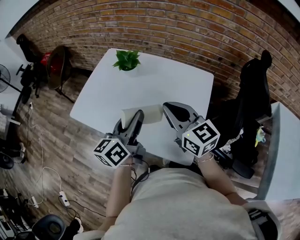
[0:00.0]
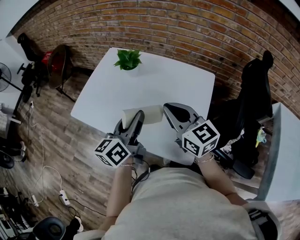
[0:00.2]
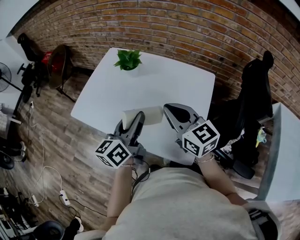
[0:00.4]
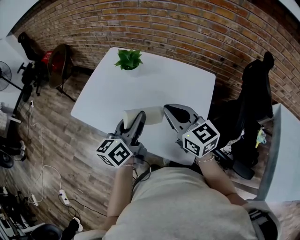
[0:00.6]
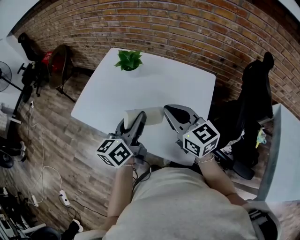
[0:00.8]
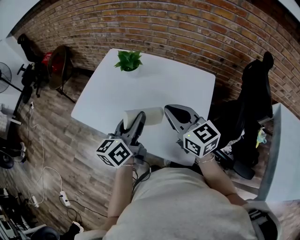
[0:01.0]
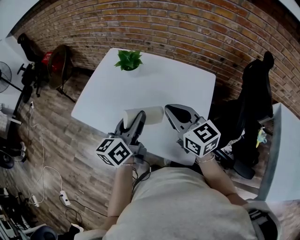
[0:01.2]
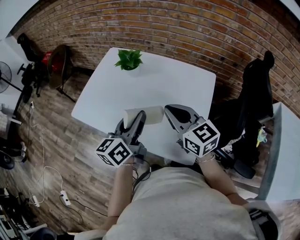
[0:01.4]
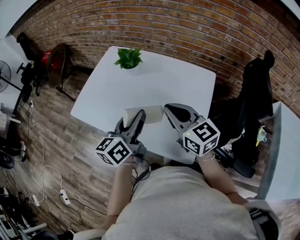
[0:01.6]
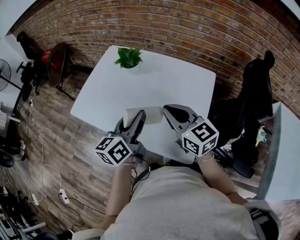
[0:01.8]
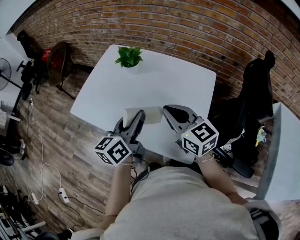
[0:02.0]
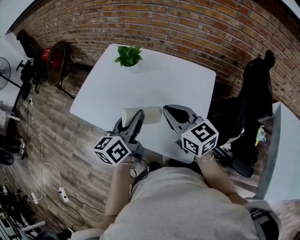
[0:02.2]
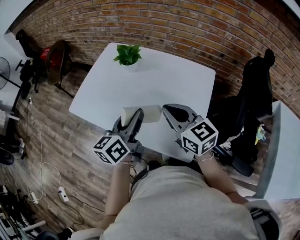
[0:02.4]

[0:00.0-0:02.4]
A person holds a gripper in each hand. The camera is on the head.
0:00.0 to 0:02.4: There are only small adjustments of the grippers.

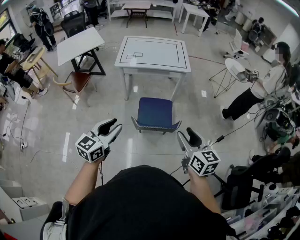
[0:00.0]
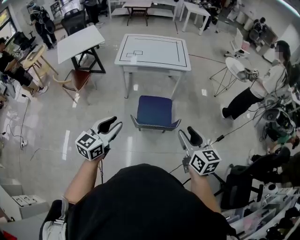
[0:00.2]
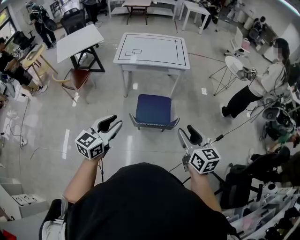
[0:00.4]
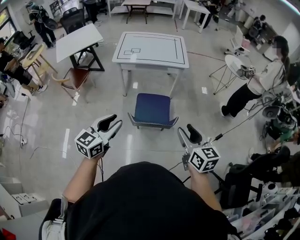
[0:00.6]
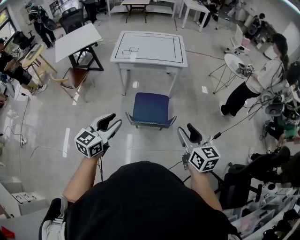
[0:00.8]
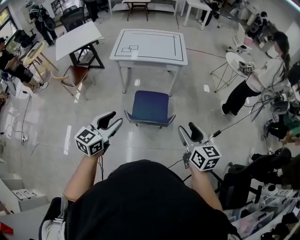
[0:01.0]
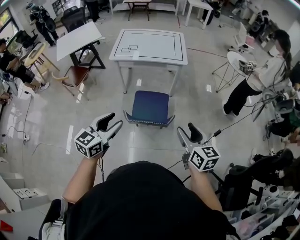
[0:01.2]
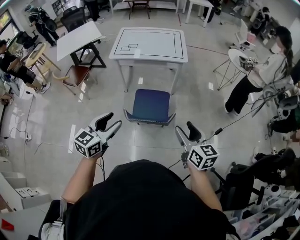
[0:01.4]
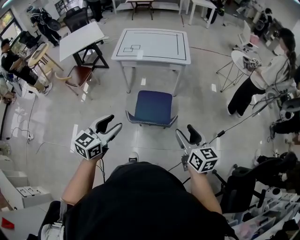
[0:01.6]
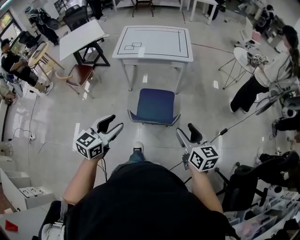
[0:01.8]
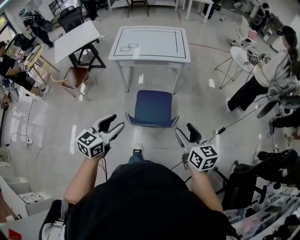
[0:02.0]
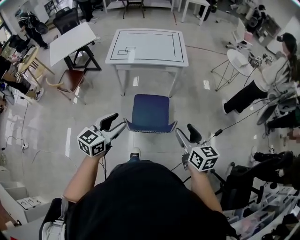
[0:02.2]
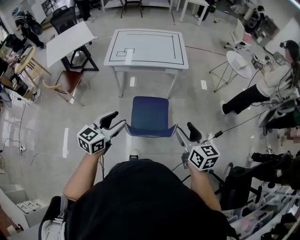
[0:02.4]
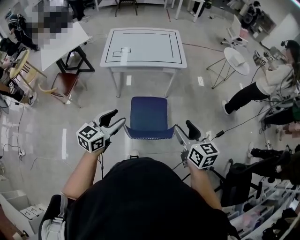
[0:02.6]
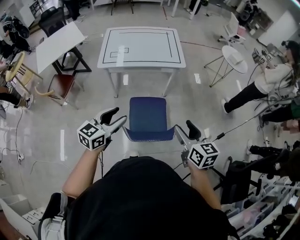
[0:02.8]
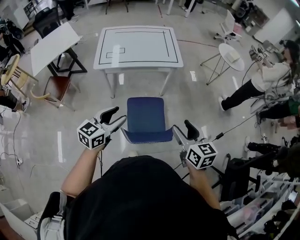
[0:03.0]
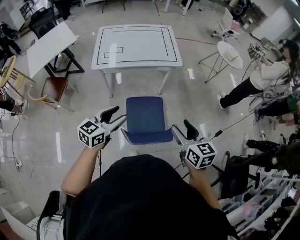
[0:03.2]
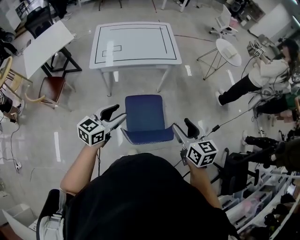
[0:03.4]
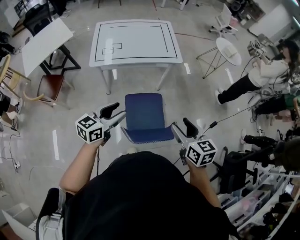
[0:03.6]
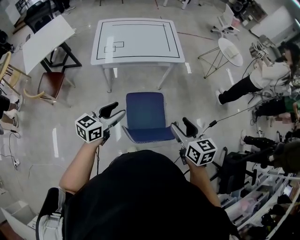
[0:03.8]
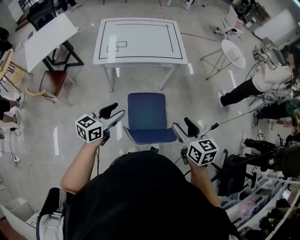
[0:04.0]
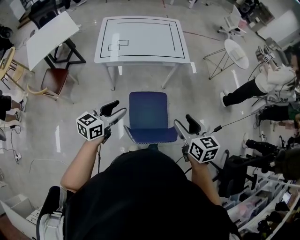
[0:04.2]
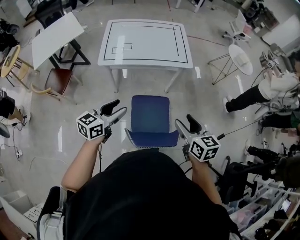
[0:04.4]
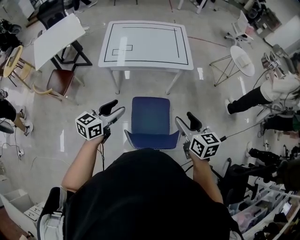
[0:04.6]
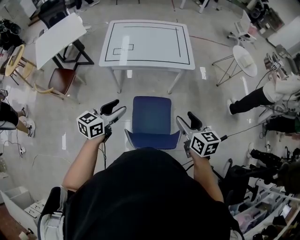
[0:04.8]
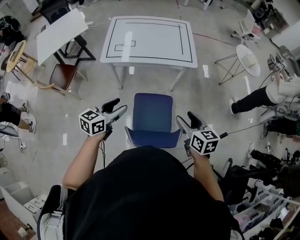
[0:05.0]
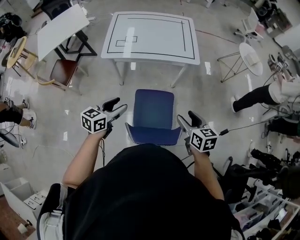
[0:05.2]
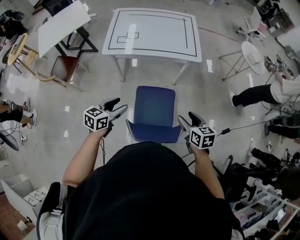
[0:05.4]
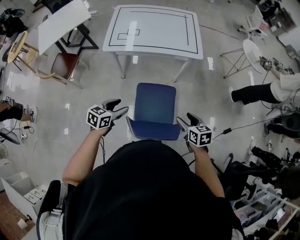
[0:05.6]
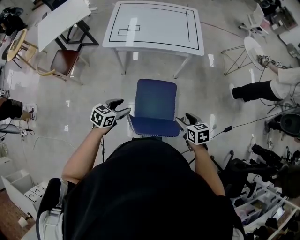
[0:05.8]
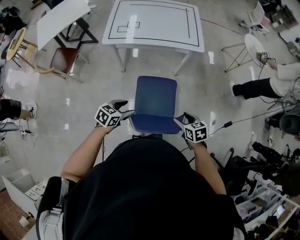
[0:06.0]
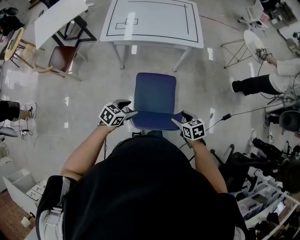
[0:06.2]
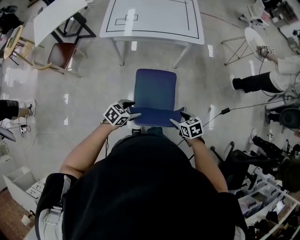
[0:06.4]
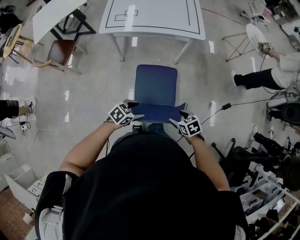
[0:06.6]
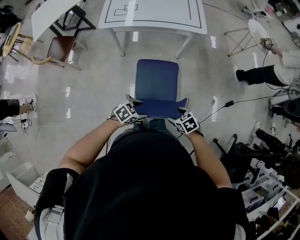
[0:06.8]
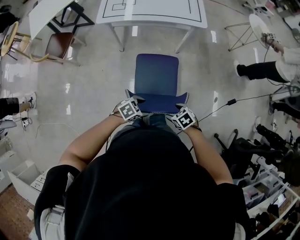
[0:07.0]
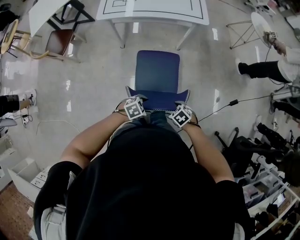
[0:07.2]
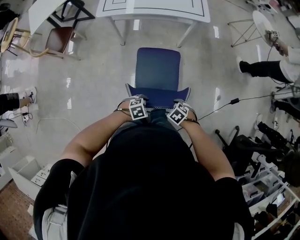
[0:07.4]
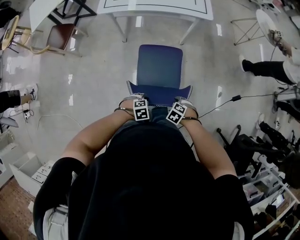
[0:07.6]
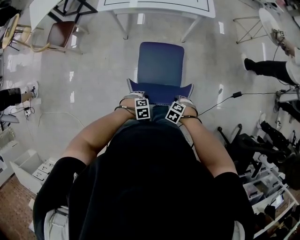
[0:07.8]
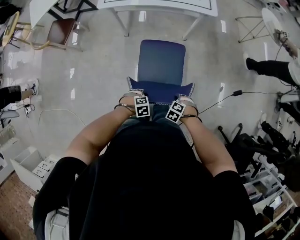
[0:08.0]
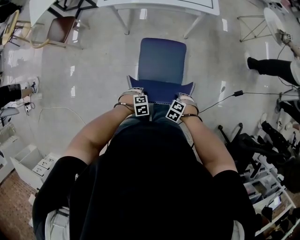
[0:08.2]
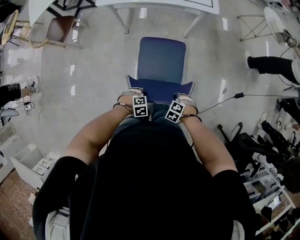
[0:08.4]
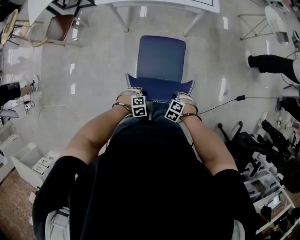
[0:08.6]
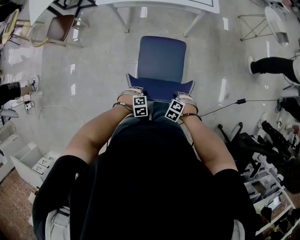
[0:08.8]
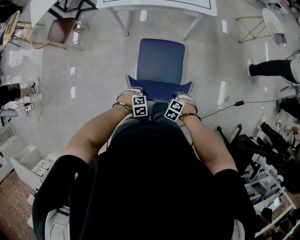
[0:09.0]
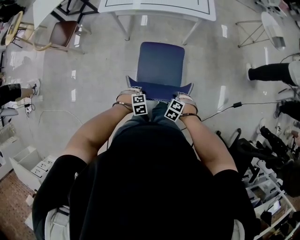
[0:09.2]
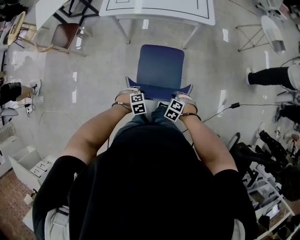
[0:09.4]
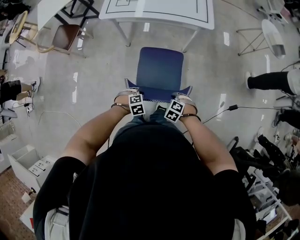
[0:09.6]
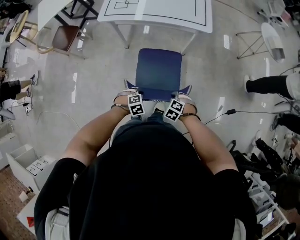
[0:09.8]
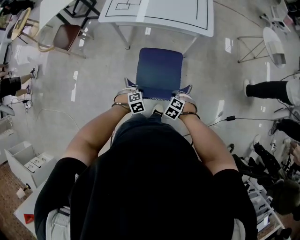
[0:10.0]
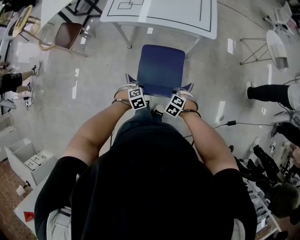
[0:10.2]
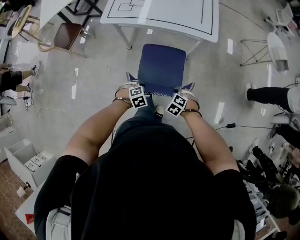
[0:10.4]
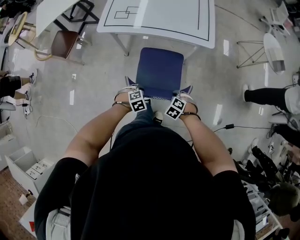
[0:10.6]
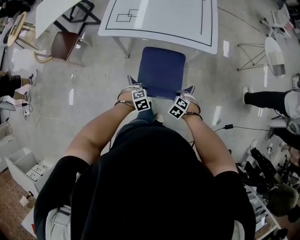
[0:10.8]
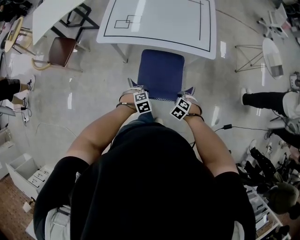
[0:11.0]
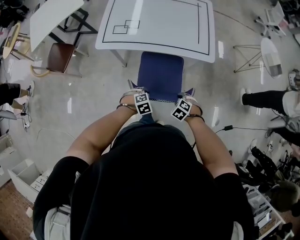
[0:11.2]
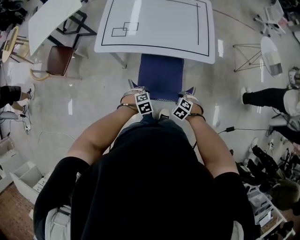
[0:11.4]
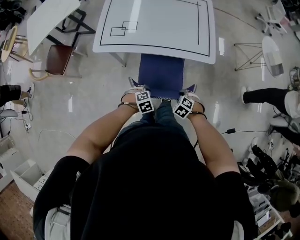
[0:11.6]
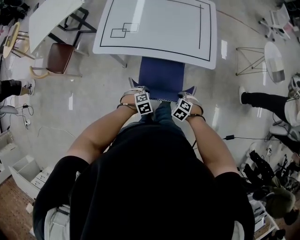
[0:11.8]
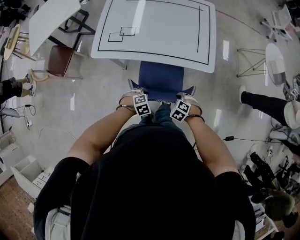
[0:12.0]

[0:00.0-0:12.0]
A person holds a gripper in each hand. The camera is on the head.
0:00.0 to 0:01.6: The grippers both shift to the right by some 10 cm.
0:01.6 to 0:03.0: The left gripper heads forward, covering approximately 20 cm. The right gripper shifts about 20 cm forward and to the left.
0:03.0 to 0:04.4: The right gripper moves forward, roughly 10 cm; the left gripper heads forward and to the left, covering some 10 cm.
0:04.4 to 0:06.0: The grippers both shift downward by approximately 20 cm. The left gripper rotates about 30 degrees. The right gripper turns by roughly 30 degrees.
0:06.0 to 0:07.6: The left gripper ends up about 25 cm from where it was, and turns by approximately 50 degrees, while the right gripper goes approximately 20 cm downward, and tips its fingers downward by some 30 degrees.
0:07.6 to 0:09.0: The right gripper closes, while the left gripper closes its fingers.
0:09.0 to 0:10.4: The left gripper shifts by about 20 cm; the right gripper ends up about 20 cm from where it was.
0:10.4 to 0:12.0: The right gripper ends up about 20 cm from where it was; the left gripper moves approximately 20 cm.

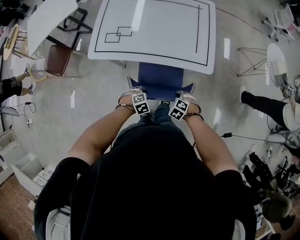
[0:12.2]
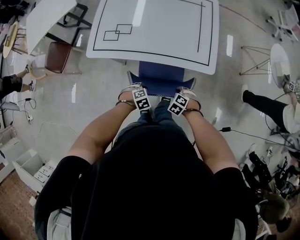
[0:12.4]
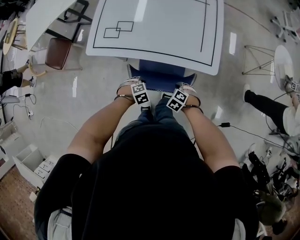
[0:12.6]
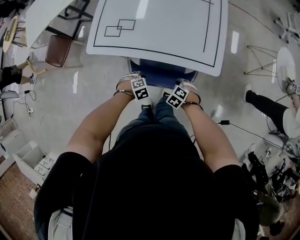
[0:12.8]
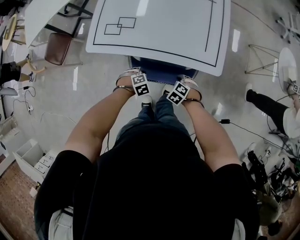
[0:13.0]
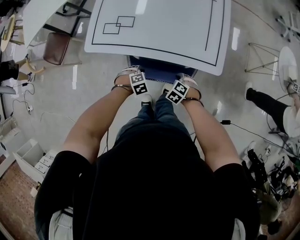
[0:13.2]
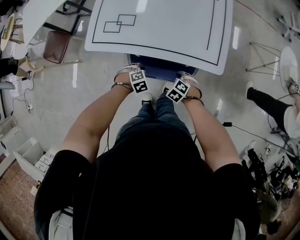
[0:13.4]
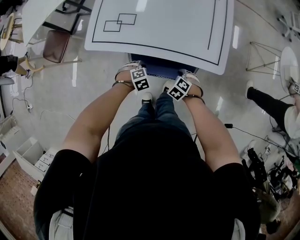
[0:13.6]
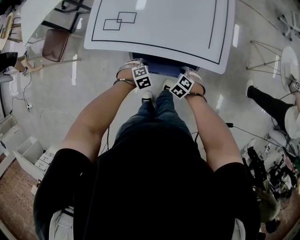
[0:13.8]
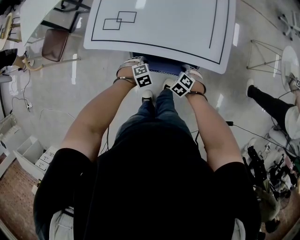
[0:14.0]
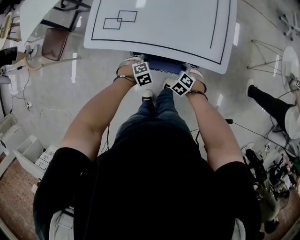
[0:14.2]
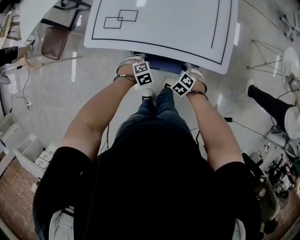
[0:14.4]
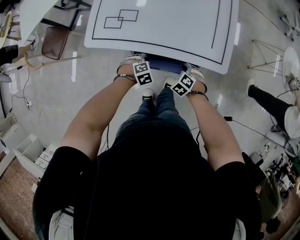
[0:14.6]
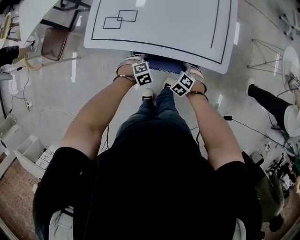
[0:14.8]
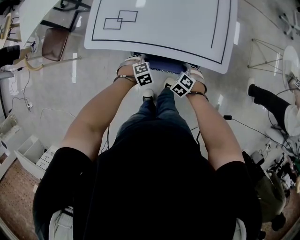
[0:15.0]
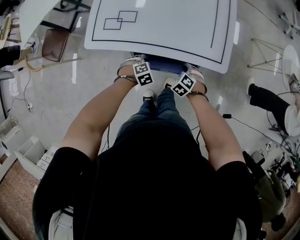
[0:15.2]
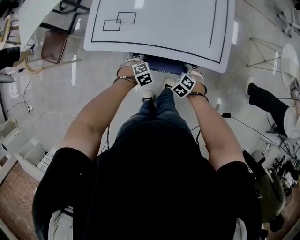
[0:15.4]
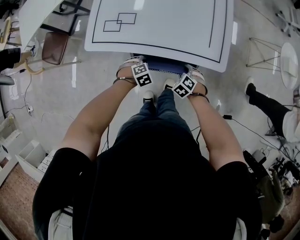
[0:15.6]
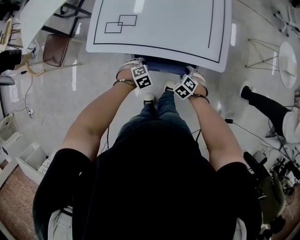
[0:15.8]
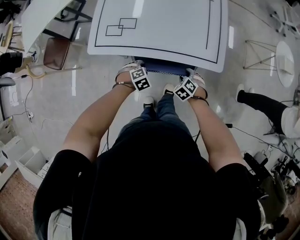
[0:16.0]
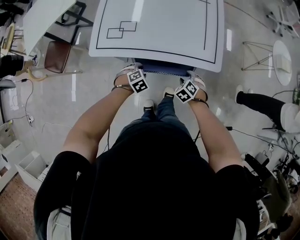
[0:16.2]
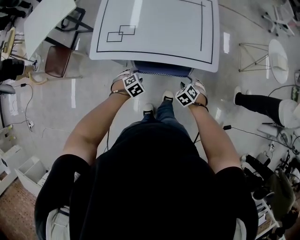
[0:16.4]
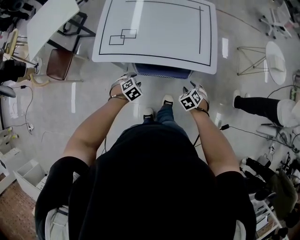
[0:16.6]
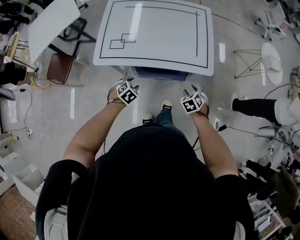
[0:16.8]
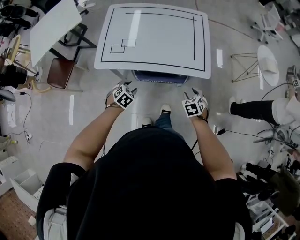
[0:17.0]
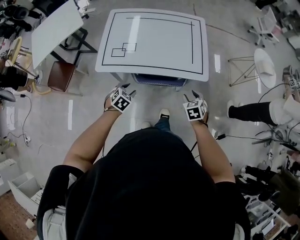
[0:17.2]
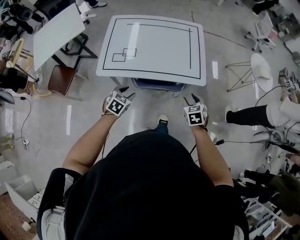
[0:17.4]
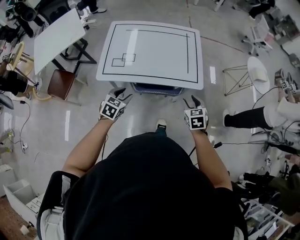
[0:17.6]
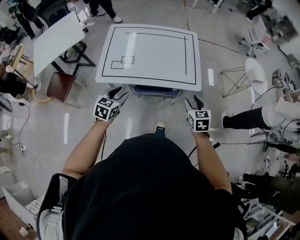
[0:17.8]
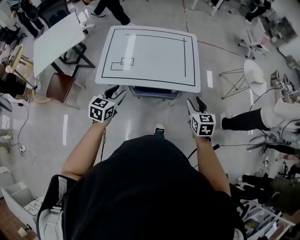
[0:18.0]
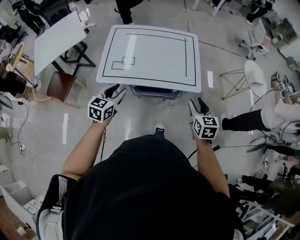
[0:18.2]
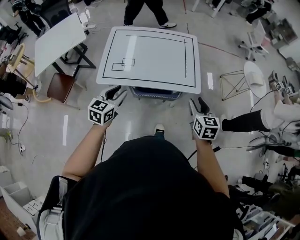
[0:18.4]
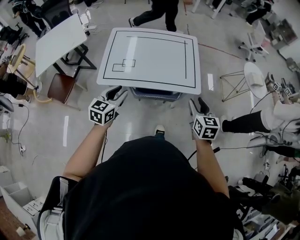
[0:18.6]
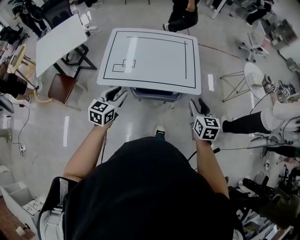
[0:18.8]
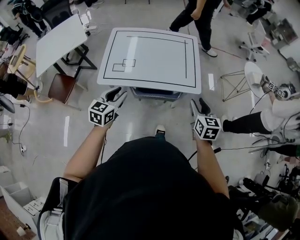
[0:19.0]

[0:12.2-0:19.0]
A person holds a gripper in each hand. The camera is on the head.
0:12.2 to 0:13.6: The right gripper shifts by about 10 cm; the left gripper moves about 15 cm.
0:13.6 to 0:15.0: The grippers stay close to where they were, moving slightly.
0:15.0 to 0:16.2: The left gripper changes place by about 5 cm, while the right gripper changes place by roughly 5 cm.
0:16.2 to 0:17.6: The two grippers go some 20 cm upward. The left gripper points its fingers some 30 degrees further upward. Meanwhile the right gripper turns by roughly 40 degrees.
0:17.6 to 0:19.0: Both grippers move upward, some 10 cm. The right gripper rotates about 20 degrees. Meanwhile the left gripper turns by roughly 20 degrees.

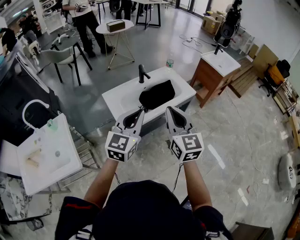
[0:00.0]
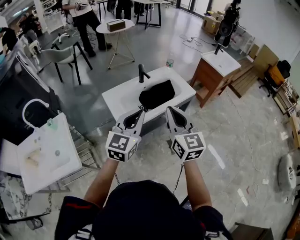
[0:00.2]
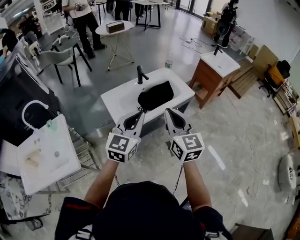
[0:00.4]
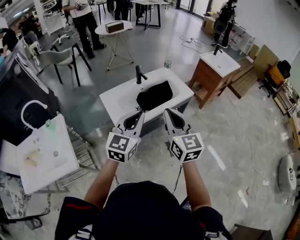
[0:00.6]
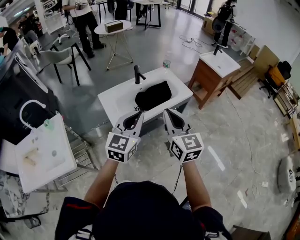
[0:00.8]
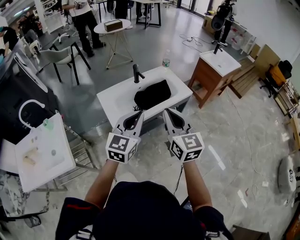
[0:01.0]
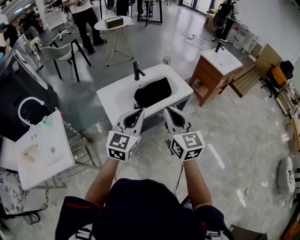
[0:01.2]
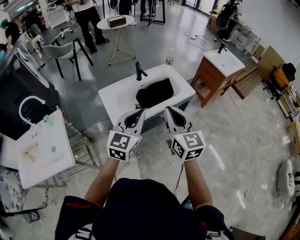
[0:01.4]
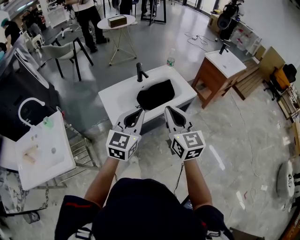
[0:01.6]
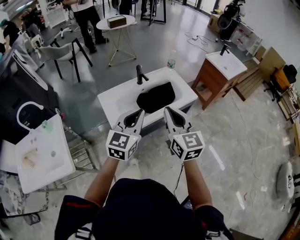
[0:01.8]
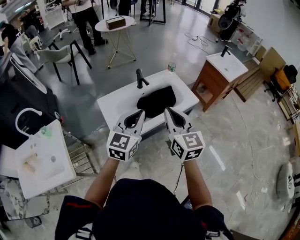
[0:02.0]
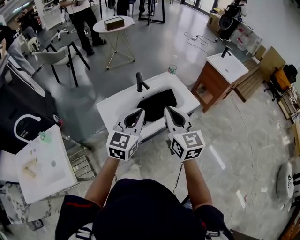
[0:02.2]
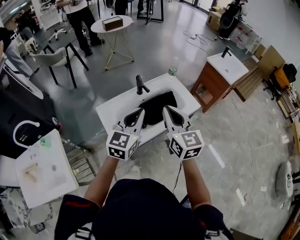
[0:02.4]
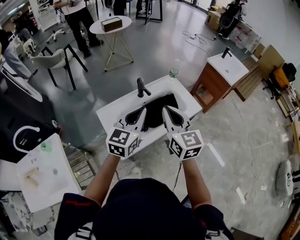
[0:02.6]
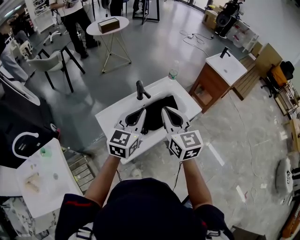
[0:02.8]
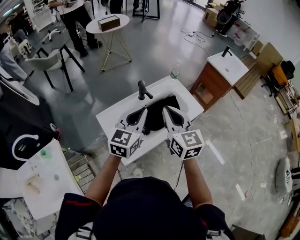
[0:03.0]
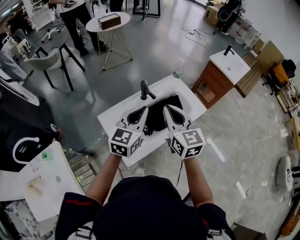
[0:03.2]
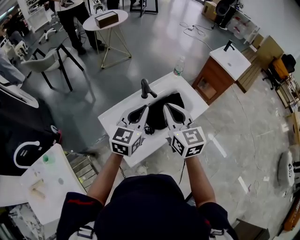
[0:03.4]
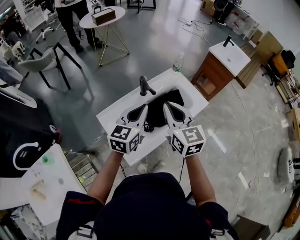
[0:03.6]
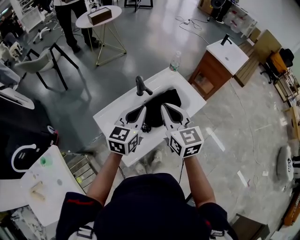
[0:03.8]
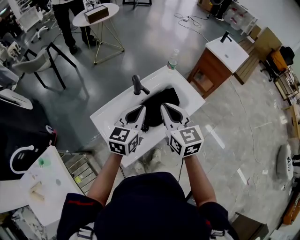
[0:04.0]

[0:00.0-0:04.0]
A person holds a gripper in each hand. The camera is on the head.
0:00.0 to 0:01.4: The right gripper changes place by approximately 5 cm. Meanwhile the left gripper moves to the right, approximately 5 cm.
0:01.4 to 0:02.6: Both grippers move forward, about 20 cm.
0:02.6 to 0:04.0: Both grippers travel together forward and downward, some 10 cm.
